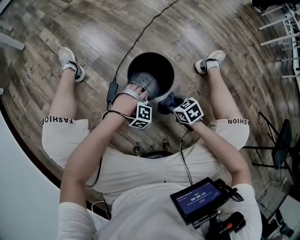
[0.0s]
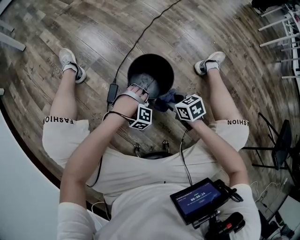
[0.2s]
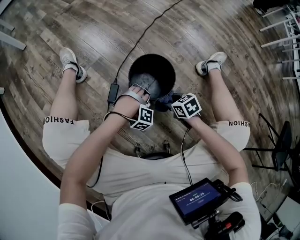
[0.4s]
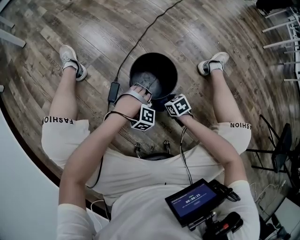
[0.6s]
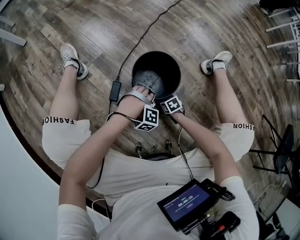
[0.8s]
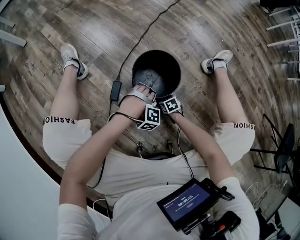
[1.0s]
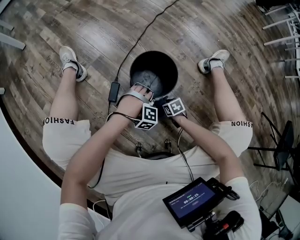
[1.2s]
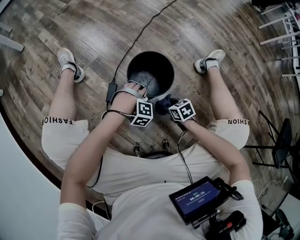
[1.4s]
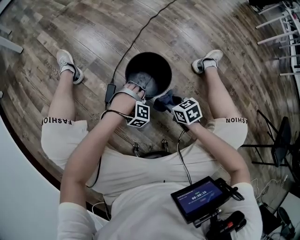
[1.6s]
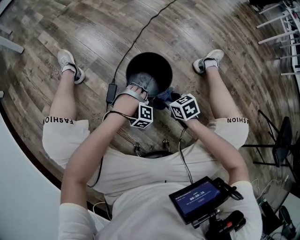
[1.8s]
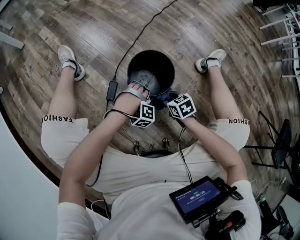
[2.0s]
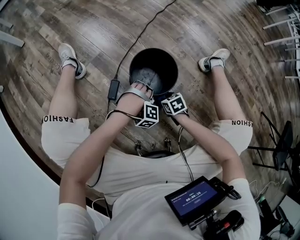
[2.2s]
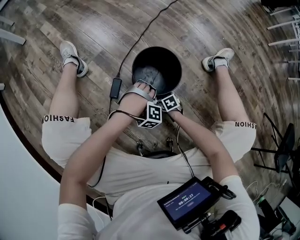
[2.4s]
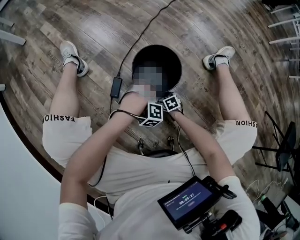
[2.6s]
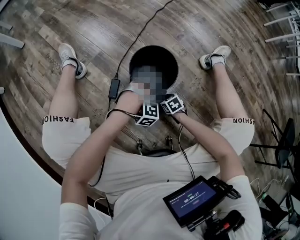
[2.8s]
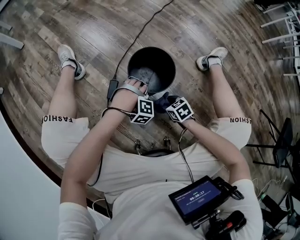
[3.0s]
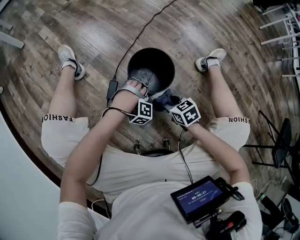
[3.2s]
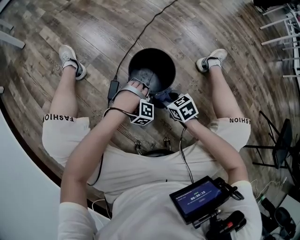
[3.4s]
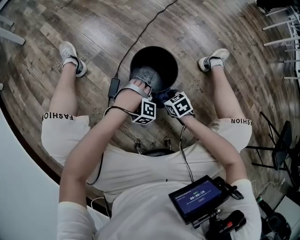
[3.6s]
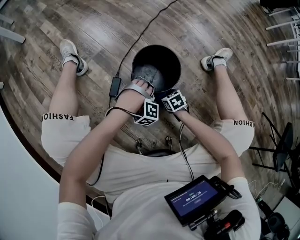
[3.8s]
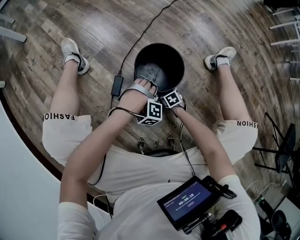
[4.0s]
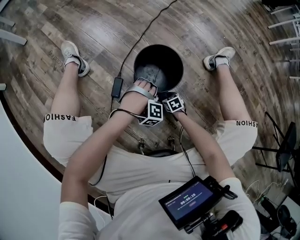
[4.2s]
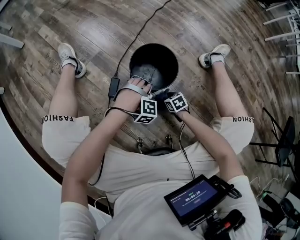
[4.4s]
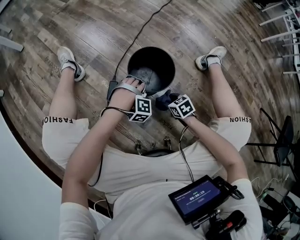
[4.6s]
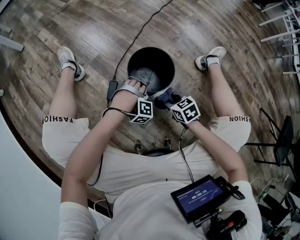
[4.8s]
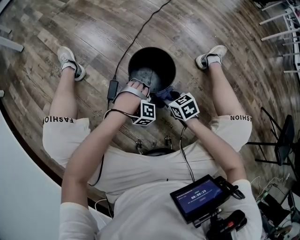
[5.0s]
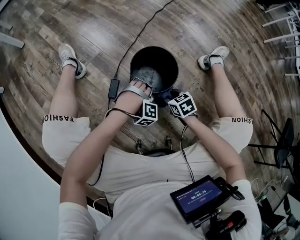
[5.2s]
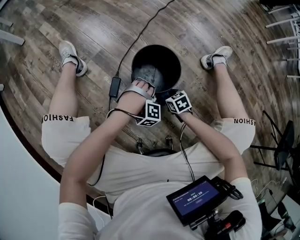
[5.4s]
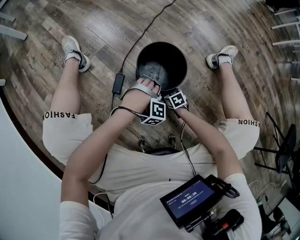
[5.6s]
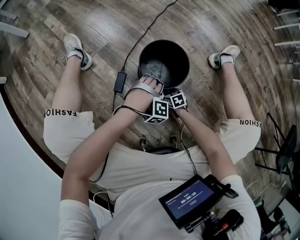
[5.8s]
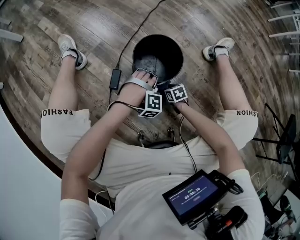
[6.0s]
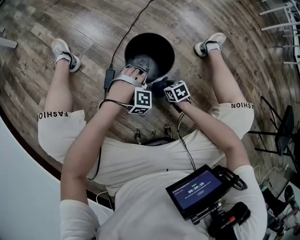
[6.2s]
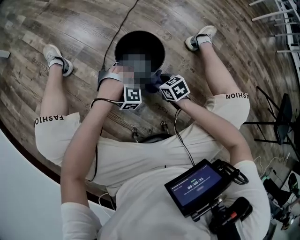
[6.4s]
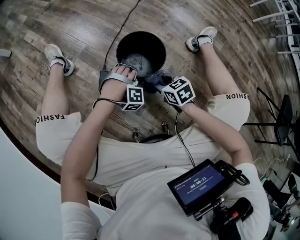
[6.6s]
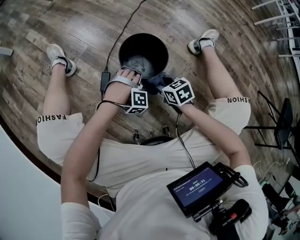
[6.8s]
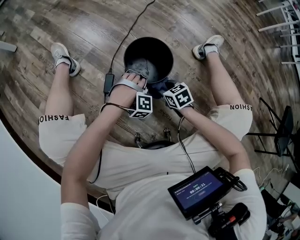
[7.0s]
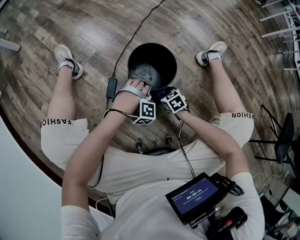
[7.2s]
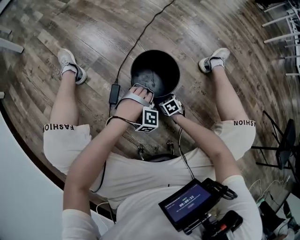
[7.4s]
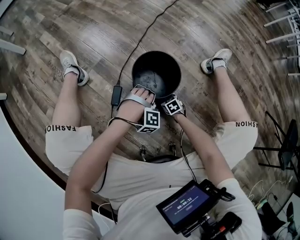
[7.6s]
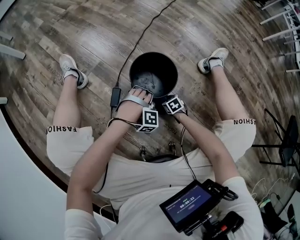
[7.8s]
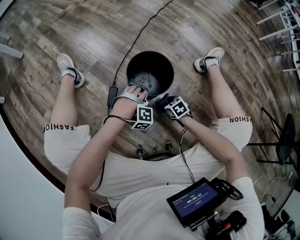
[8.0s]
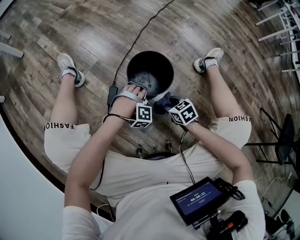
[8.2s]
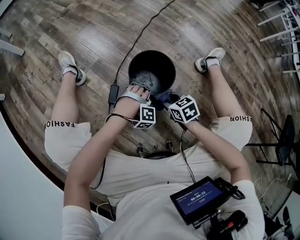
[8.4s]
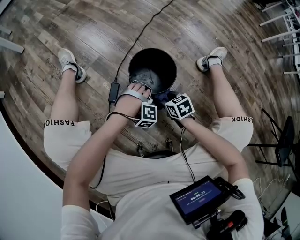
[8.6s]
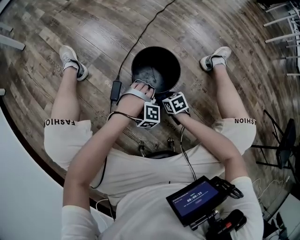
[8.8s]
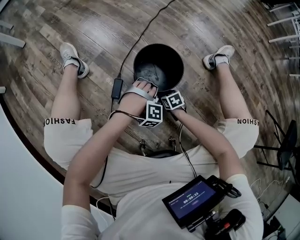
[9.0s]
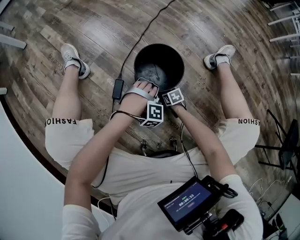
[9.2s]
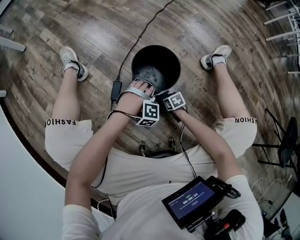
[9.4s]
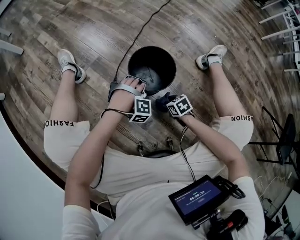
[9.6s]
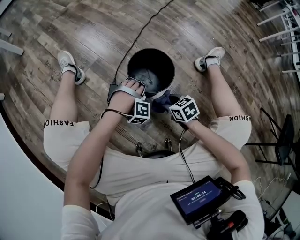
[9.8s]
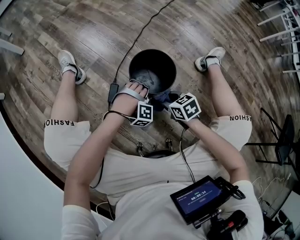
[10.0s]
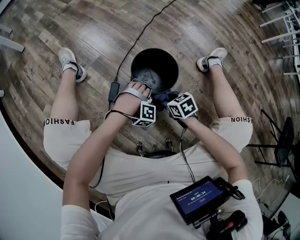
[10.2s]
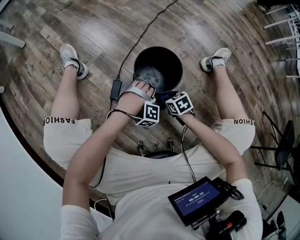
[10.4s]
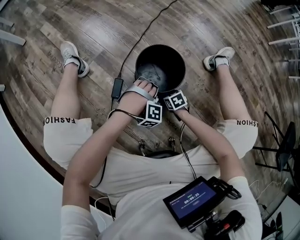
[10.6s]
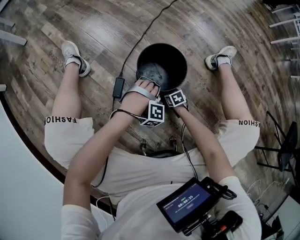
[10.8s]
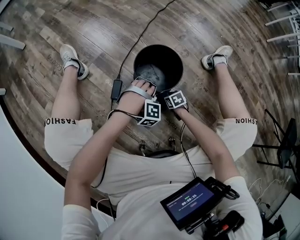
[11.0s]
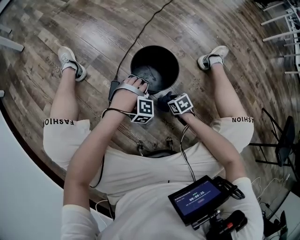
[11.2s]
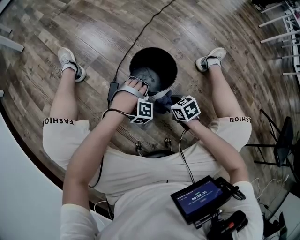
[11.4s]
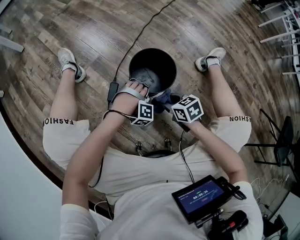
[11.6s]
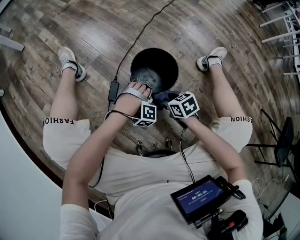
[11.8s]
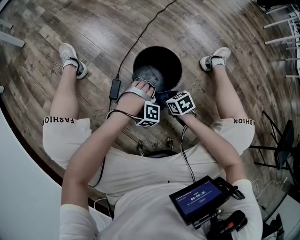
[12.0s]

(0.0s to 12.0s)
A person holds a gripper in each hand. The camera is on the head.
0.0s - 1.6s: The right gripper travels downward and back again, about 20 cm each way.
1.6s - 3.0s: The right gripper travels downward by approximately 10 cm.
3.0s - 4.4s: The right gripper swings up and down, approximately 25 cm each way, with 2 reversals.
4.4s - 6.0s: The right gripper reaches about 15 cm upward, then returns.
6.0s - 7.6s: The right gripper goes upward and returns, roughly 20 cm each way.
7.6s - 9.0s: The right gripper travels upward and back again, about 25 cm each way.
9.0s - 10.4s: The right gripper moves upward, some 10 cm.
10.4s - 12.0s: The right gripper swings up and down, approximately 25 cm each way, with 2 reversals.

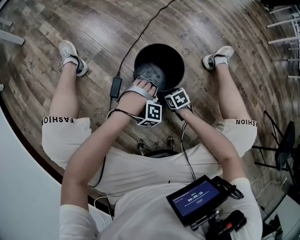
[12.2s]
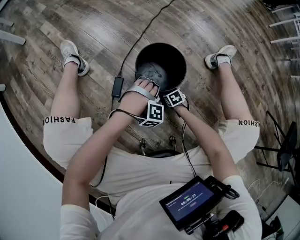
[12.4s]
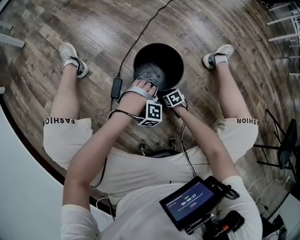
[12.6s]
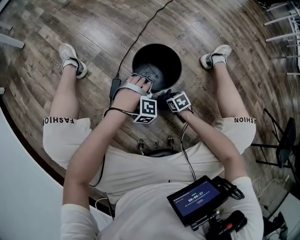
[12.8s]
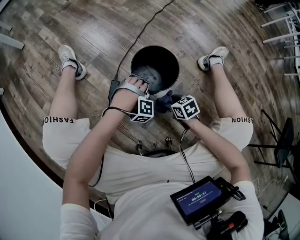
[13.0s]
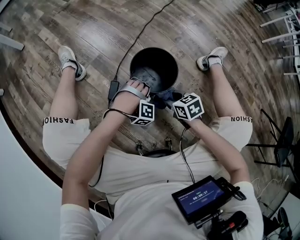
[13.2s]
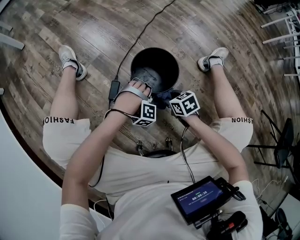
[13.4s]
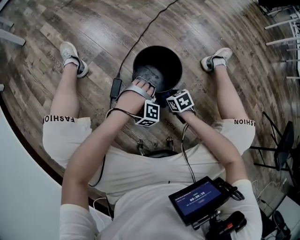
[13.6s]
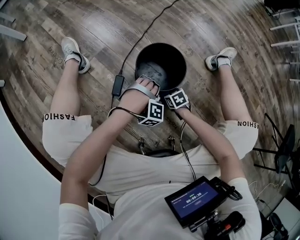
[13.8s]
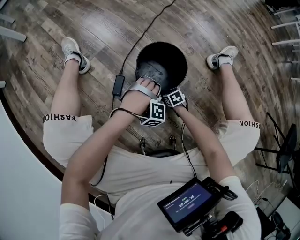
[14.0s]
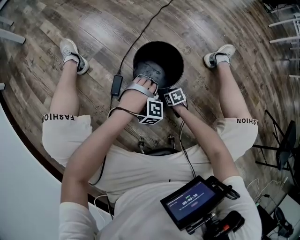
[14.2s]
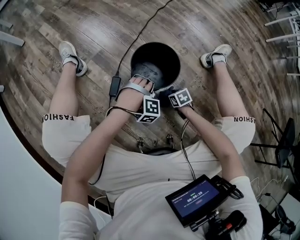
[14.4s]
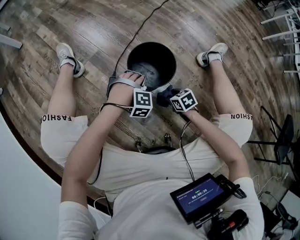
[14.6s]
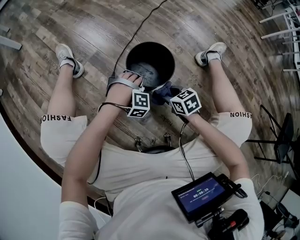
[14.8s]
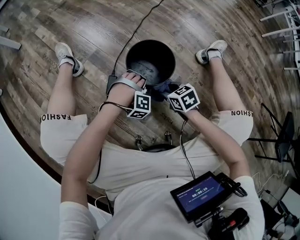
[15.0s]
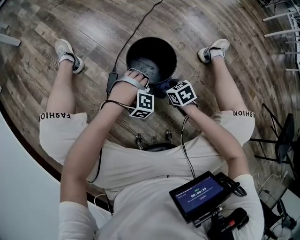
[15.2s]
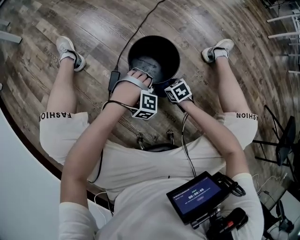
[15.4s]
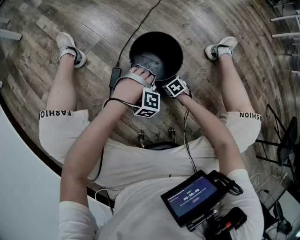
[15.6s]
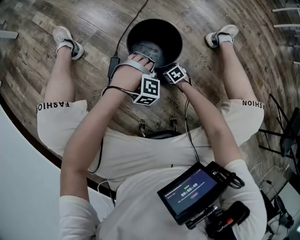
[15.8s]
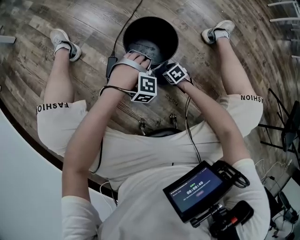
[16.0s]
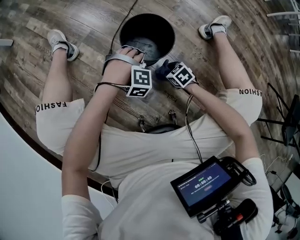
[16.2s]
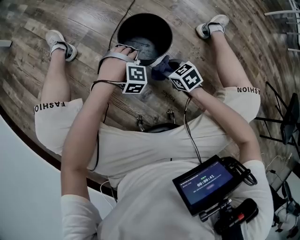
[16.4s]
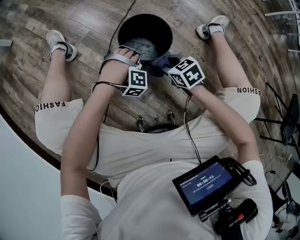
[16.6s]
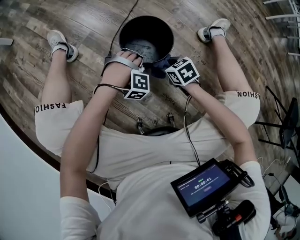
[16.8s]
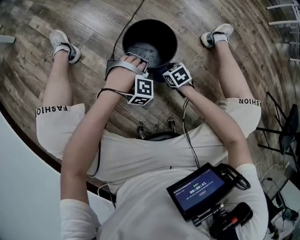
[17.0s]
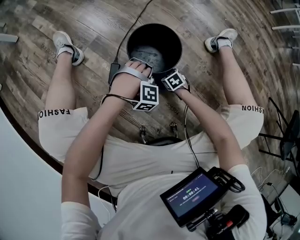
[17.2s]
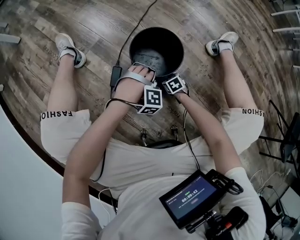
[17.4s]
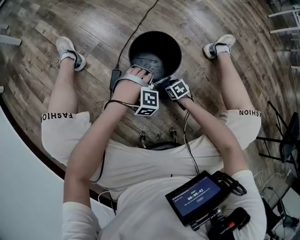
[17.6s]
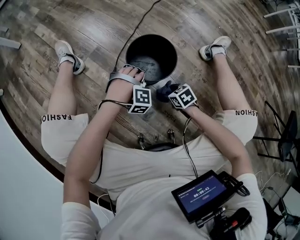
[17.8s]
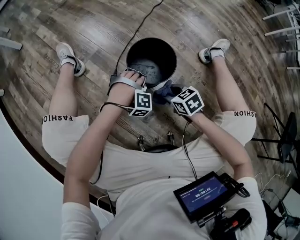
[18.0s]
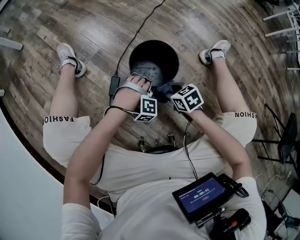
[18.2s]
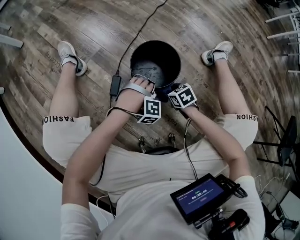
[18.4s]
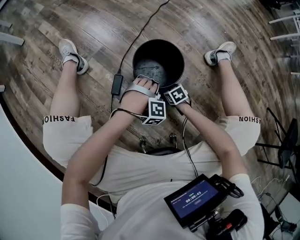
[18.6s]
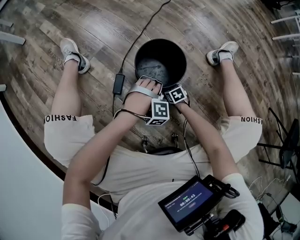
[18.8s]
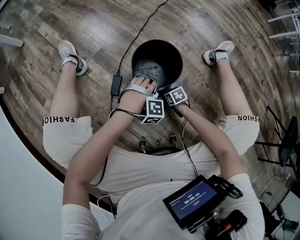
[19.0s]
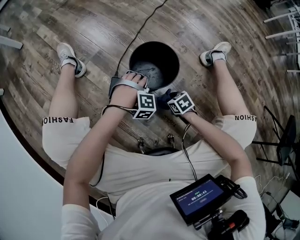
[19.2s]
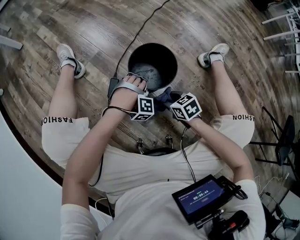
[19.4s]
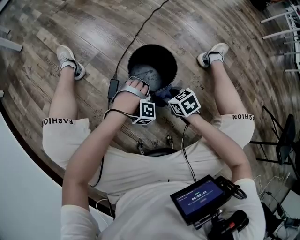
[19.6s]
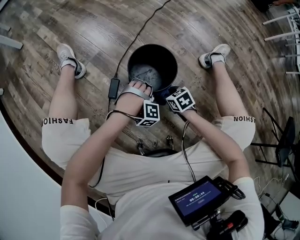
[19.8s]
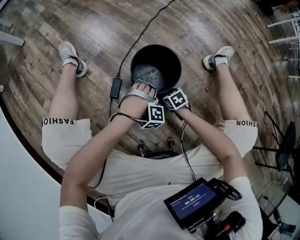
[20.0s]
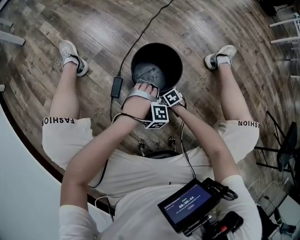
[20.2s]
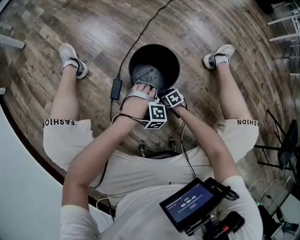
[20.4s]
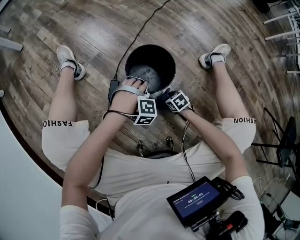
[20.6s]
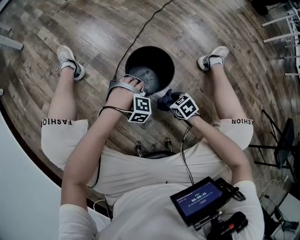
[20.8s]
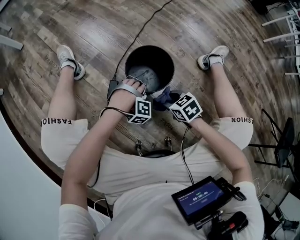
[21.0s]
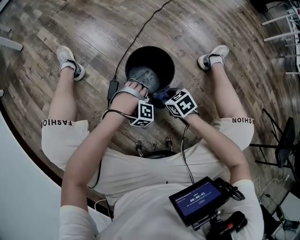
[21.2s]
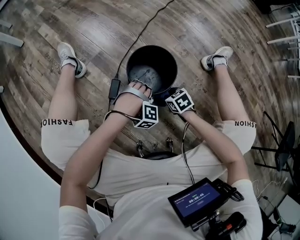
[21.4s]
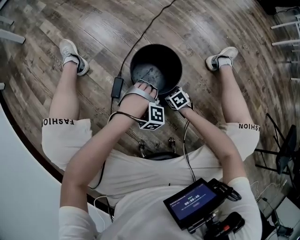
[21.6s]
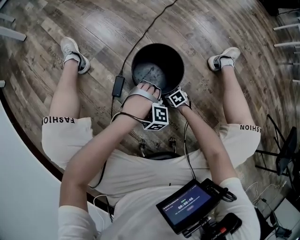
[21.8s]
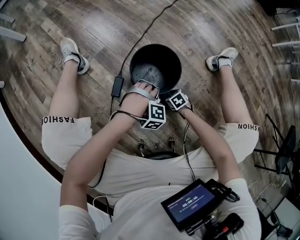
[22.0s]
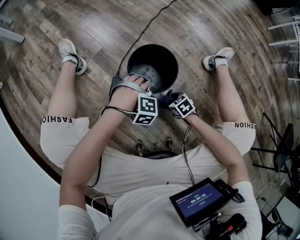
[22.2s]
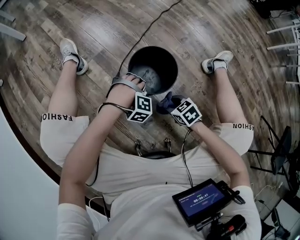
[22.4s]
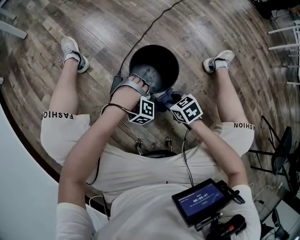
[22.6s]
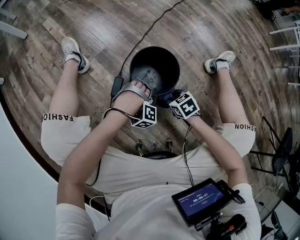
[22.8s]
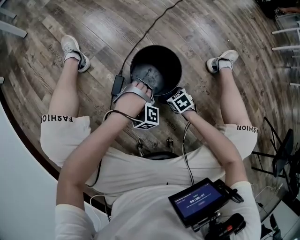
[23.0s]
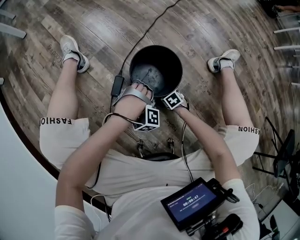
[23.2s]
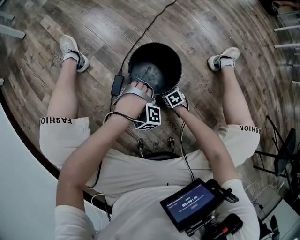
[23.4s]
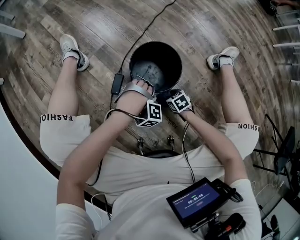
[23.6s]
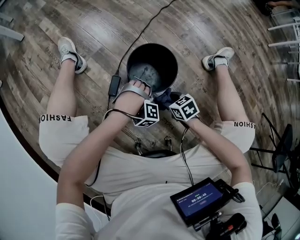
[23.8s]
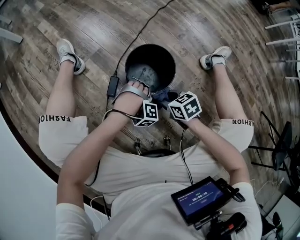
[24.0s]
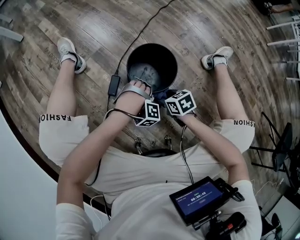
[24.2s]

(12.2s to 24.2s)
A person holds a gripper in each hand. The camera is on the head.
12.2s - 13.8s: The right gripper swings up and down, roughly 20 cm each way, with 2 reversals.
13.8s - 15.2s: The right gripper goes up and down, some 20 cm each way, reversing 2 times.
15.2s - 16.6s: The right gripper goes downward and returns, approximately 15 cm each way.
16.6s - 18.2s: The right gripper moves some 25 cm downward and comes back.
18.2s - 19.8s: The right gripper swings up and down, approximately 20 cm each way, with 2 reversals.
19.8s - 21.2s: The right gripper reaches some 15 cm downward, then returns.
21.2s - 22.6s: The right gripper reaches about 20 cm downward, then returns.
22.6s - 24.2s: The right gripper swings up and down, roughly 25 cm each way, with 2 reversals.
